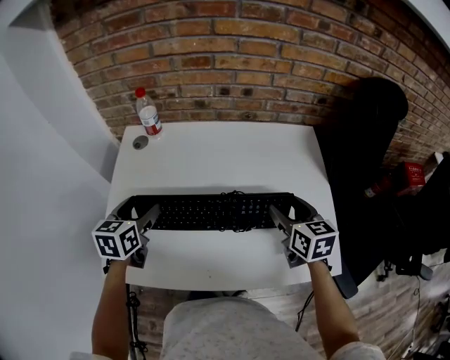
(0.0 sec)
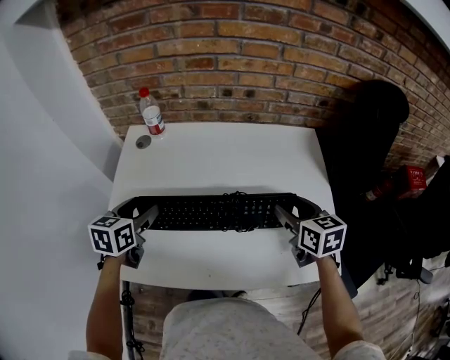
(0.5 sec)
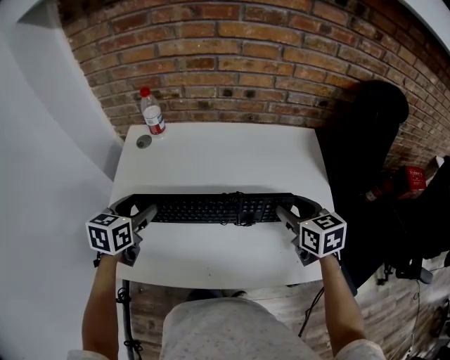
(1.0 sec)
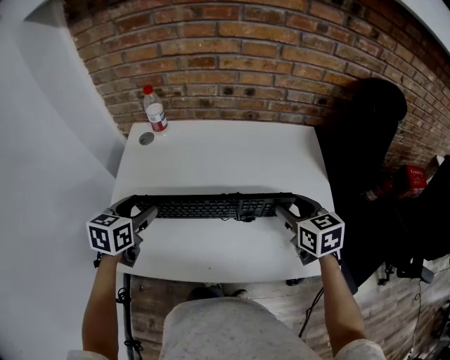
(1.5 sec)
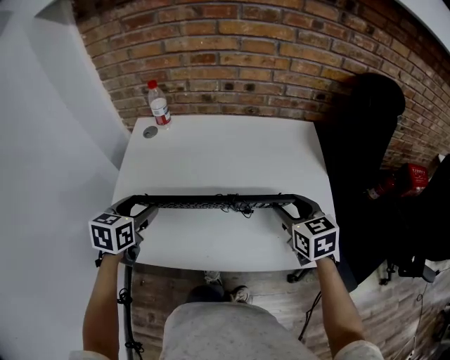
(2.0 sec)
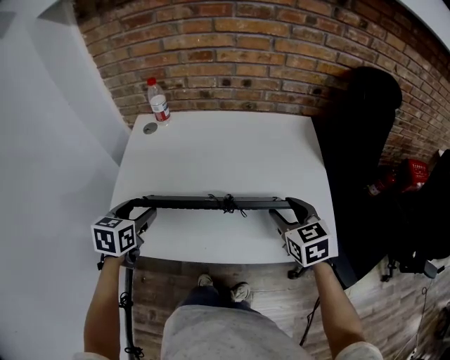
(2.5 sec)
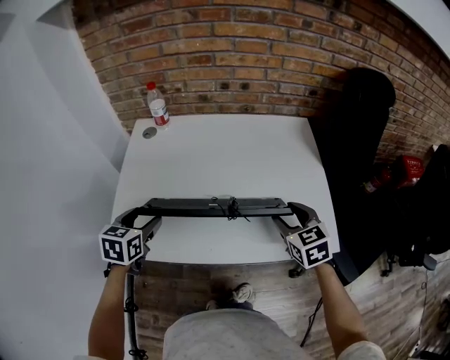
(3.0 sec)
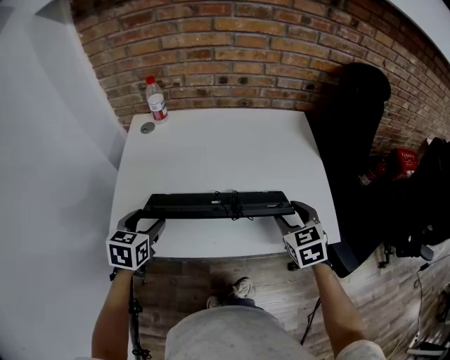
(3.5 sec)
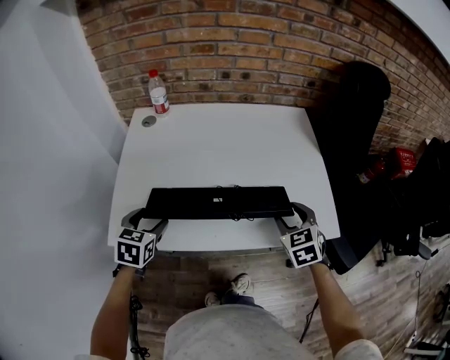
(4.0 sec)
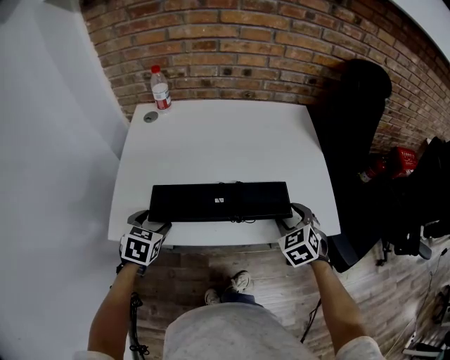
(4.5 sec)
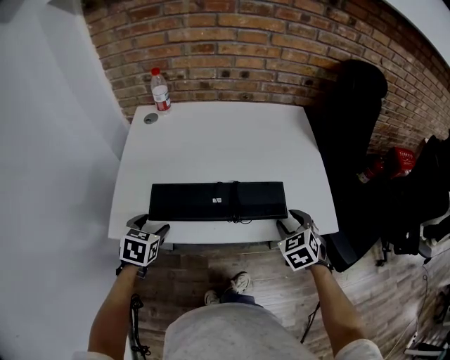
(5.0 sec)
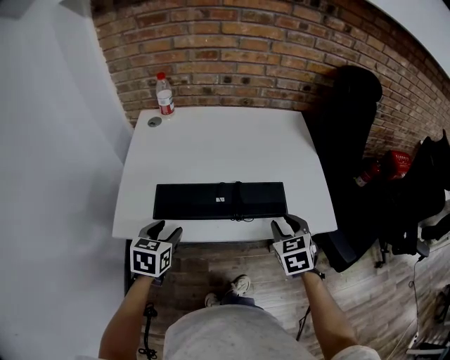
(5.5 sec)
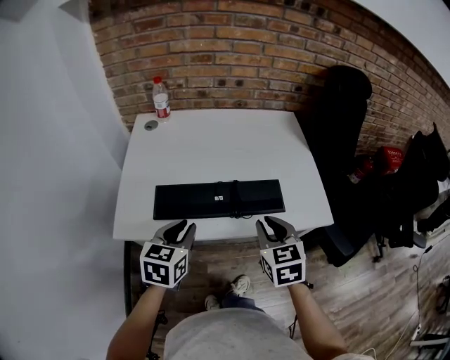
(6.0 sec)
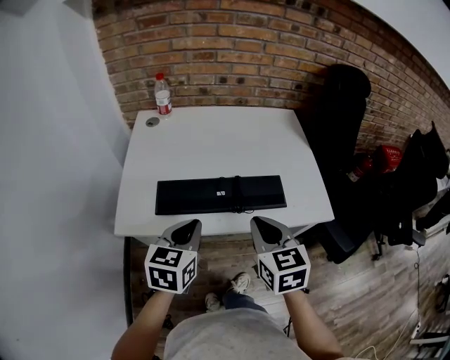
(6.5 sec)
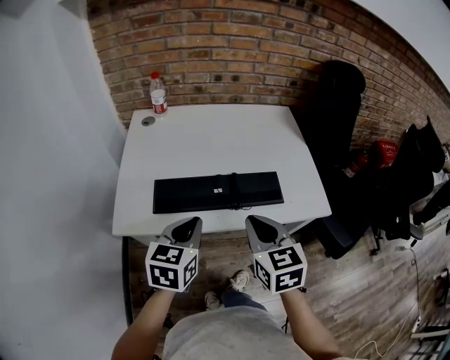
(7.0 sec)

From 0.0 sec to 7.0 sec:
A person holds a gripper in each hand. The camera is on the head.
From 0.0 sec to 2.0 sec: Both grippers travel together backward, about 5 cm.
From 2.0 sec to 3.5 sec: Both grippers travel together backward, approximately 5 cm.
From 3.5 sec to 5.0 sec: Both grippers travel together downward and backward, roughly 10 cm.
From 5.0 sec to 7.0 sec: The right gripper is displaced to the left, upward and backward by roughly 25 cm, changes its angle by approximately 30 degrees, and closes. The left gripper shifts roughly 20 cm upward, to the right and backward, turns by some 30 degrees, and closes up.

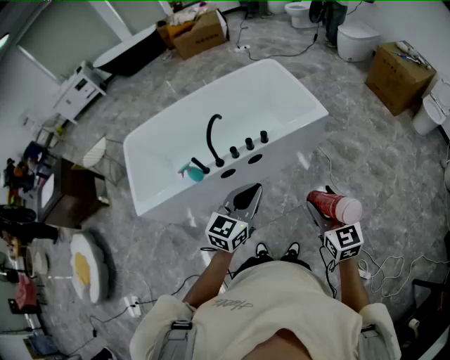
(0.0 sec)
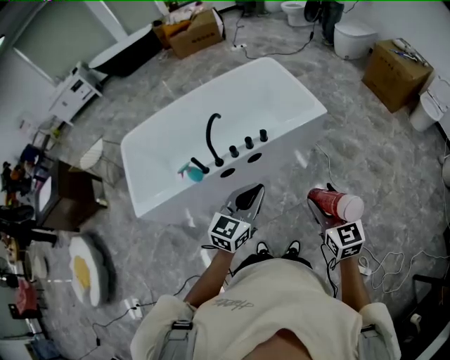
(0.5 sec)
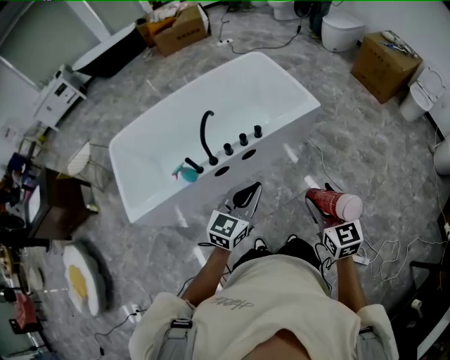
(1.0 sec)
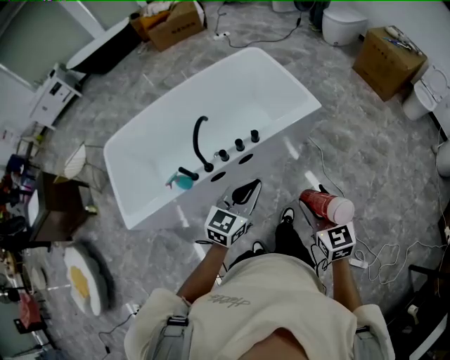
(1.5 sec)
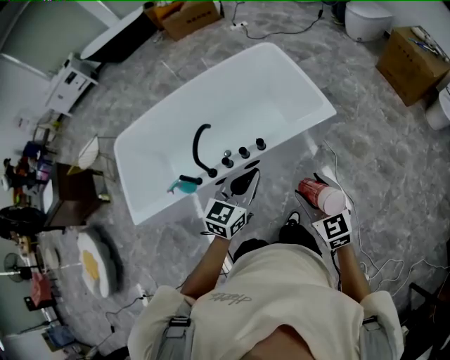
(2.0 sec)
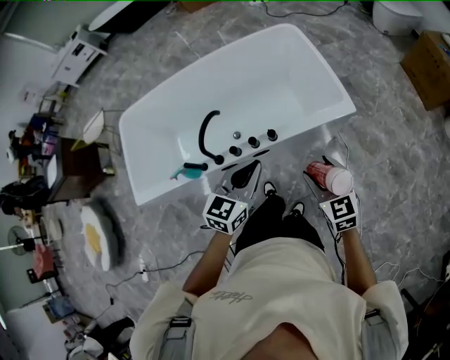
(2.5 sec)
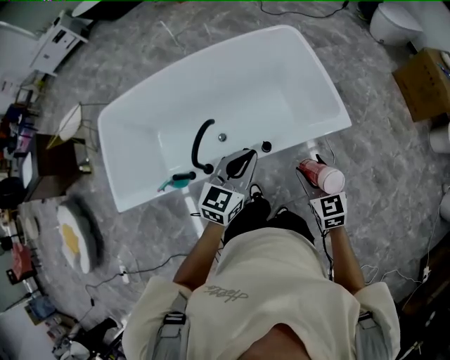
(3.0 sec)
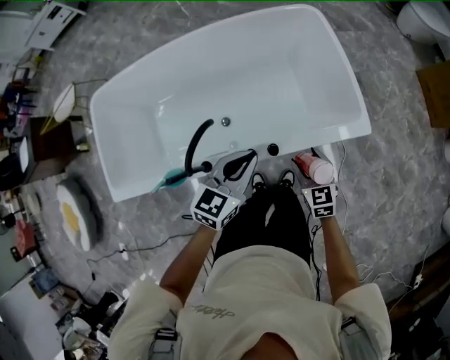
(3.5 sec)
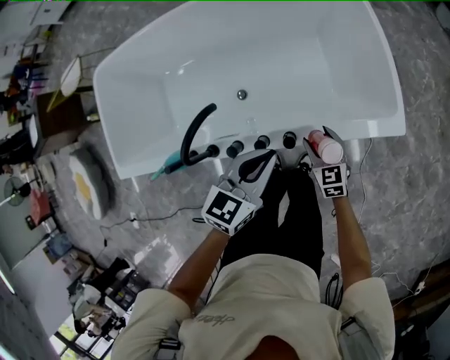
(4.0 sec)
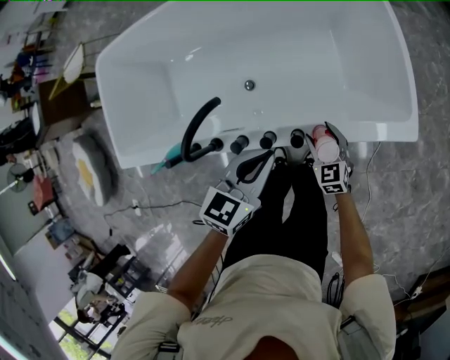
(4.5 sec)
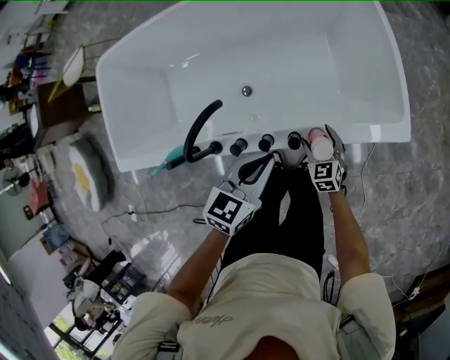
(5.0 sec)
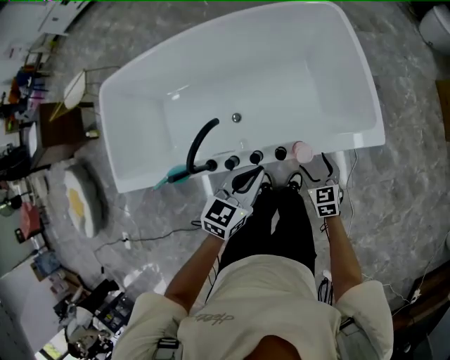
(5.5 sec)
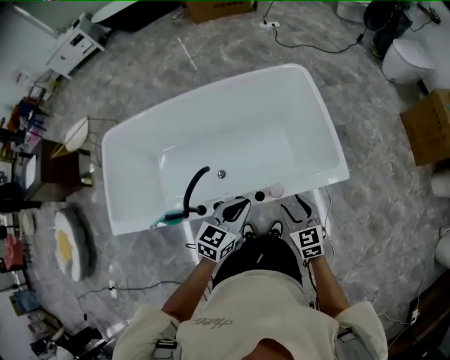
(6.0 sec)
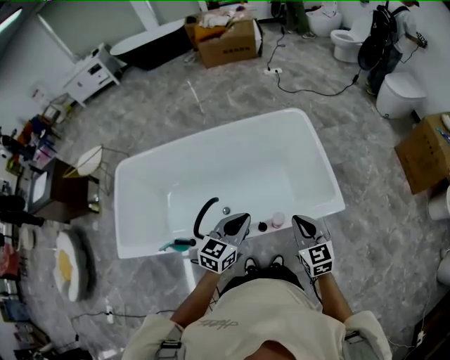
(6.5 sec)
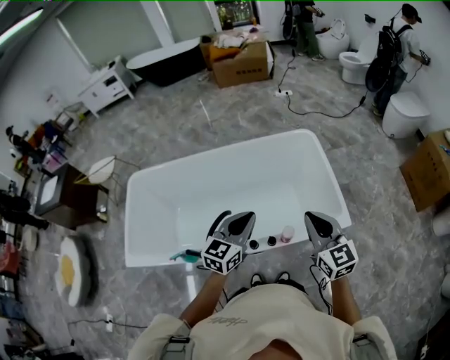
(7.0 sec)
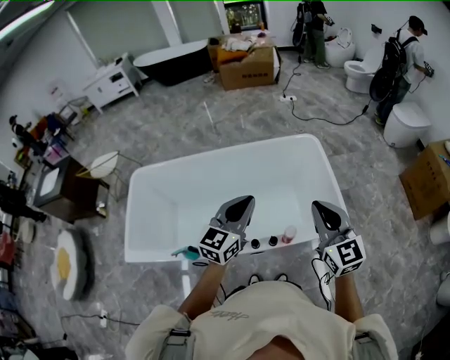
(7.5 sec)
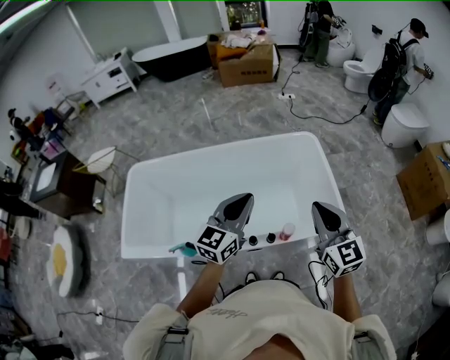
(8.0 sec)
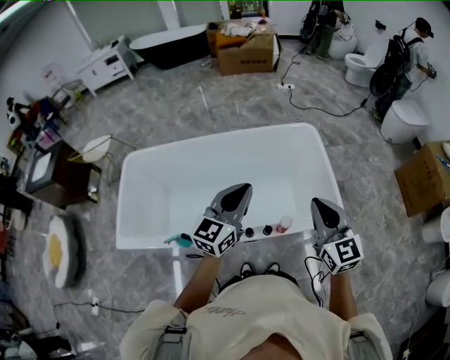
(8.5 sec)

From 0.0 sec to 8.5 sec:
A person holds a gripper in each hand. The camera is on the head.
From 0.0 sec to 2.0 sec: Both grippers move forward, approximately 20 cm.
From 2.0 sec to 4.0 sec: The left gripper goes roughly 25 cm forward and downward, and turns by approximately 20 degrees; the right gripper moves downward and forward, some 40 cm.
From 4.0 sec to 6.5 sec: The left gripper shifts some 10 cm upward. The right gripper is displaced upward by roughly 30 cm, and closes its fingers.
From 6.5 sec to 8.5 sec: The grippers both shift upward by about 15 cm. The left gripper turns by some 20 degrees.

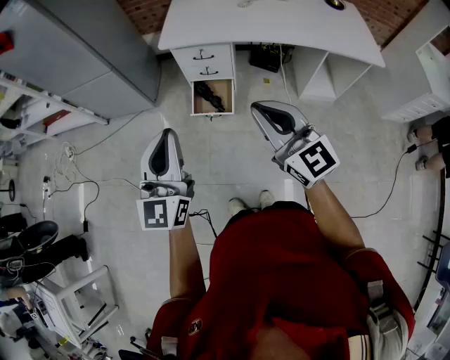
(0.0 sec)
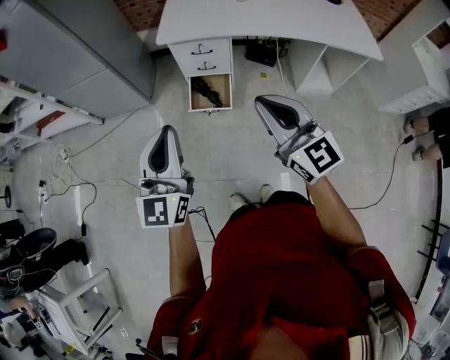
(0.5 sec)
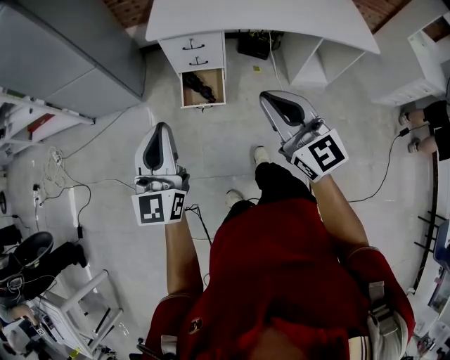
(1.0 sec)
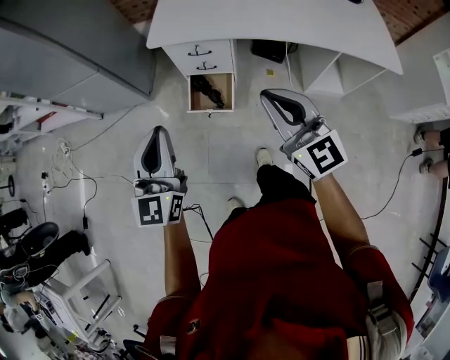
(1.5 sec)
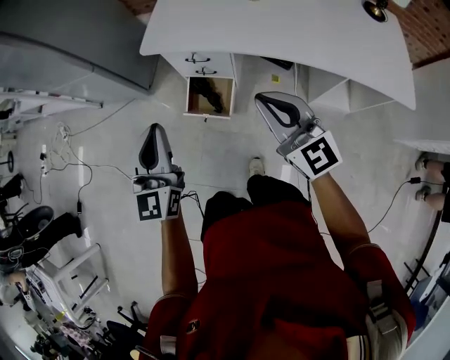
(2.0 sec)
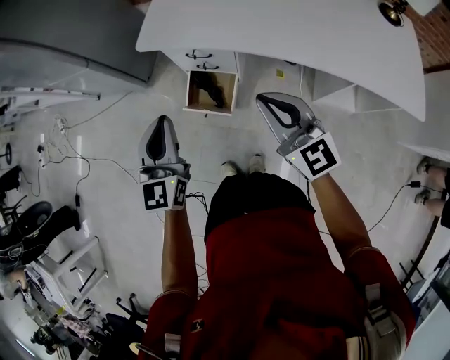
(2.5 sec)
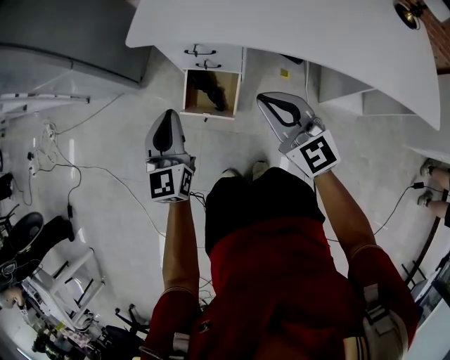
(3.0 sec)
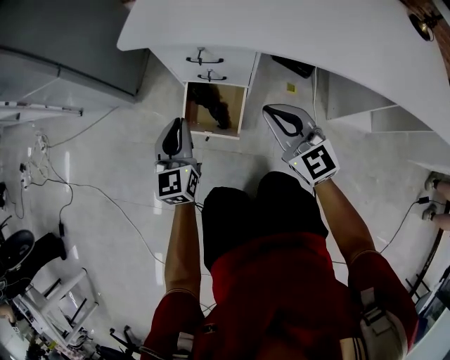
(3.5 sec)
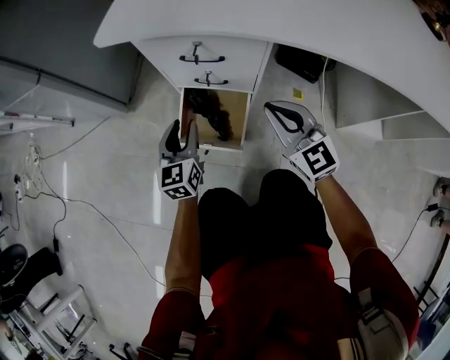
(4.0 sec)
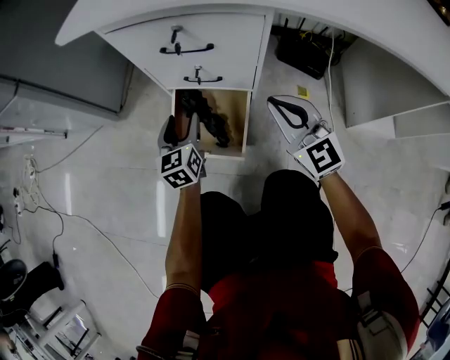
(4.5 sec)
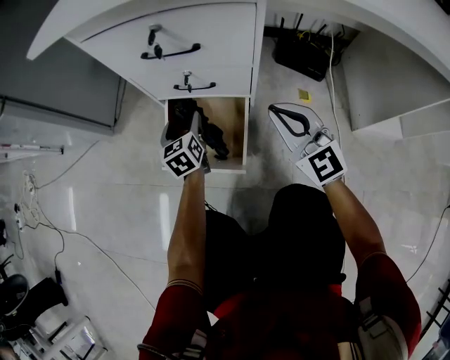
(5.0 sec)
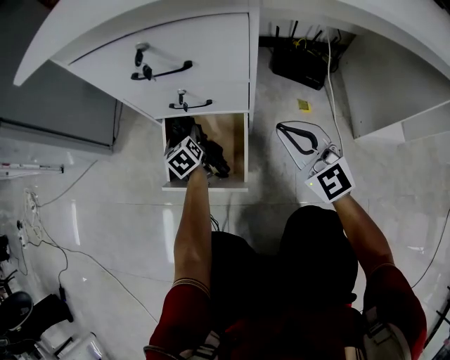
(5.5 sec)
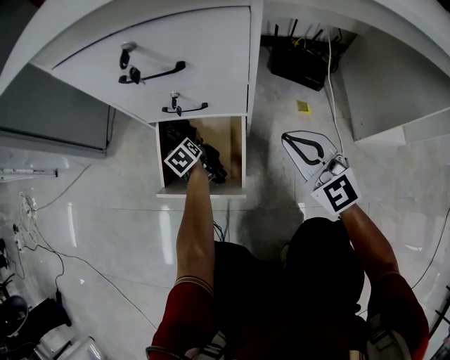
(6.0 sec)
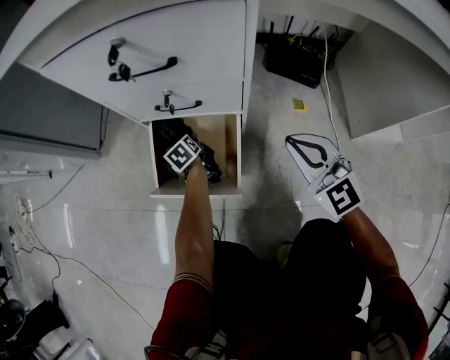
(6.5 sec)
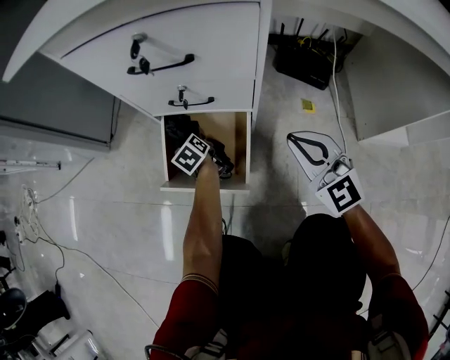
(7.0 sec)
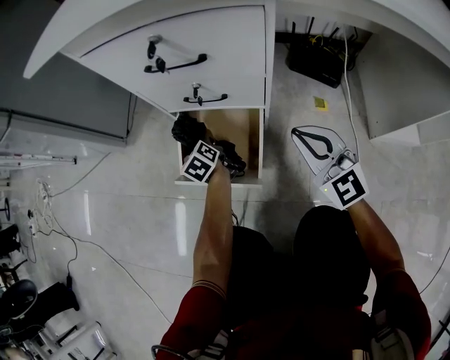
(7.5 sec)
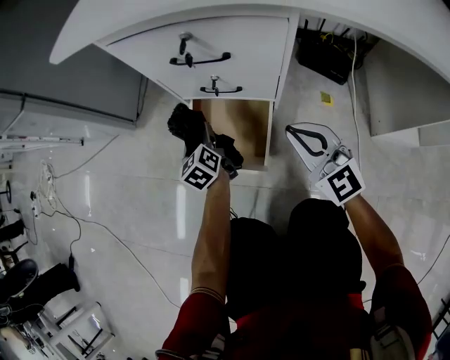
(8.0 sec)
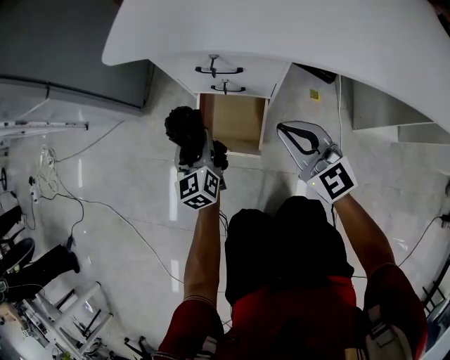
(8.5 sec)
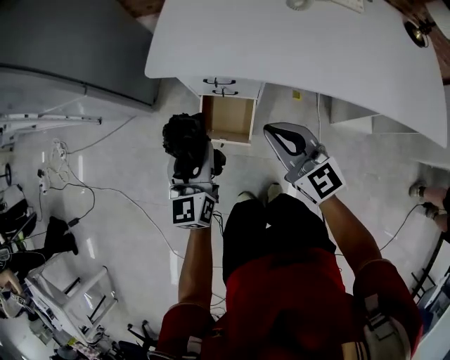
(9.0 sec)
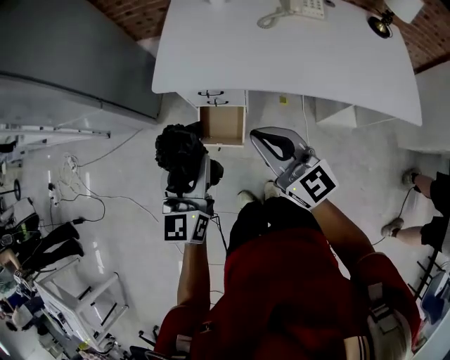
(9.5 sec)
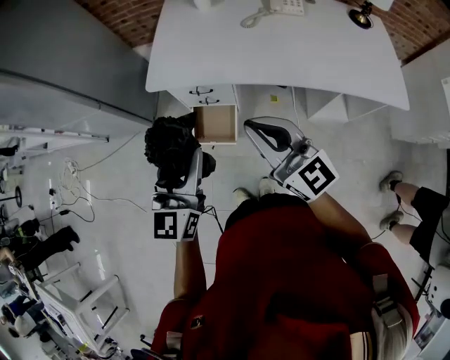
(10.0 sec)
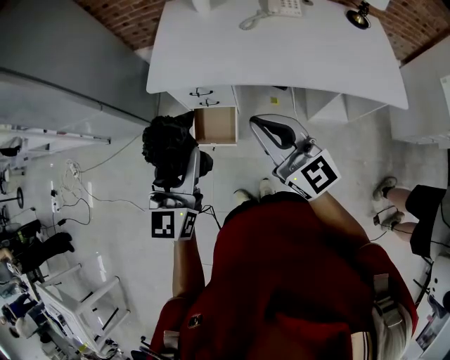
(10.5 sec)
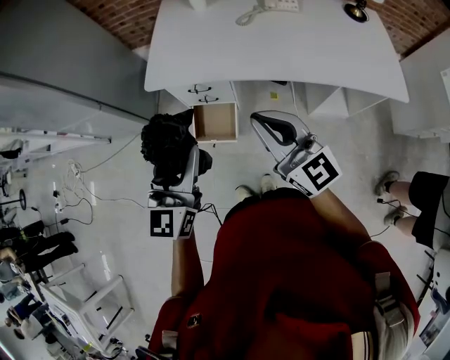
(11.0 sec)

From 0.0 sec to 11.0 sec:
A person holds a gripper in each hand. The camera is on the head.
From 0.0 sec to 2.0 sec: The grippers both shift forward and to the right by some 25 cm.
From 2.0 sec to 3.5 sec: The grippers both shift downward and forward by roughly 40 cm.
From 3.5 sec to 5.5 sec: The right gripper moves downward, approximately 25 cm; the left gripper goes roughly 50 cm downward and forward, changes its angle by about 30 degrees, and opens up.
From 5.5 sec to 7.5 sec: The left gripper travels downward and back again, approximately 10 cm each way.
From 7.5 sec to 9.0 sec: Both grippers move upward, some 50 cm. The left gripper changes its angle by about 40 degrees. The right gripper changes its angle by some 20 degrees.
From 9.0 sec to 11.0 sec: The two grippers go about 25 cm upward and backward.
